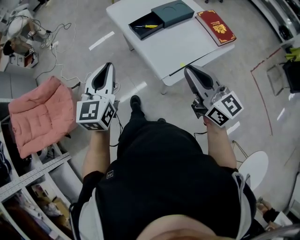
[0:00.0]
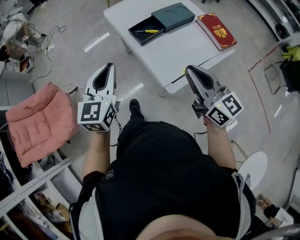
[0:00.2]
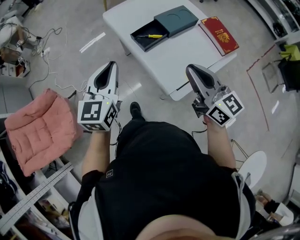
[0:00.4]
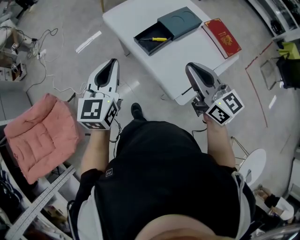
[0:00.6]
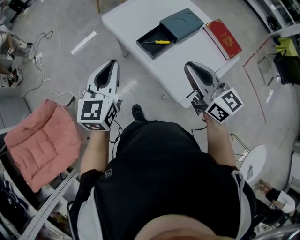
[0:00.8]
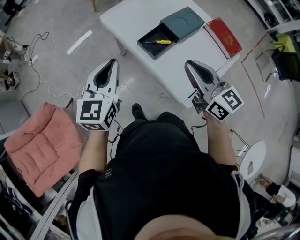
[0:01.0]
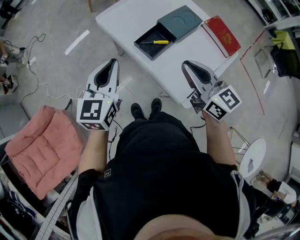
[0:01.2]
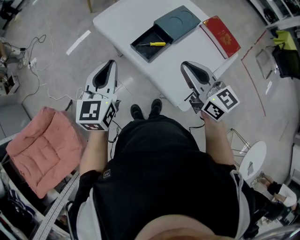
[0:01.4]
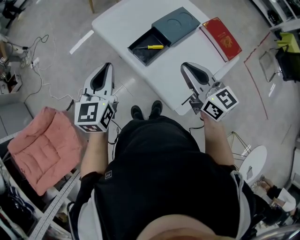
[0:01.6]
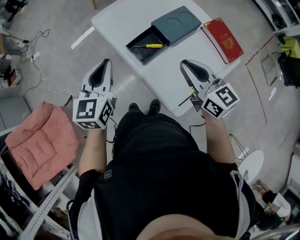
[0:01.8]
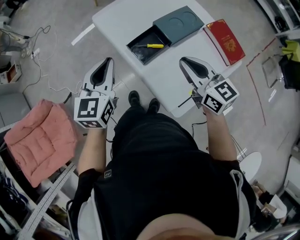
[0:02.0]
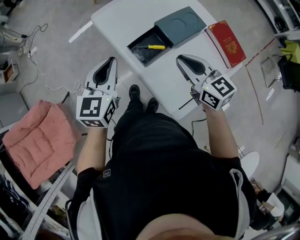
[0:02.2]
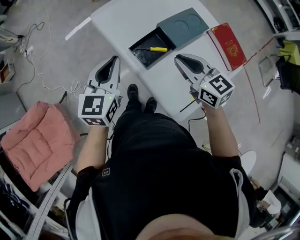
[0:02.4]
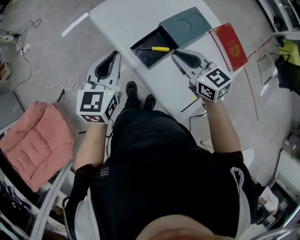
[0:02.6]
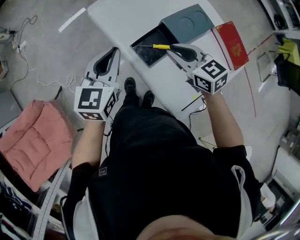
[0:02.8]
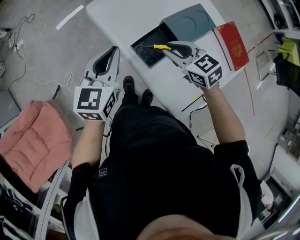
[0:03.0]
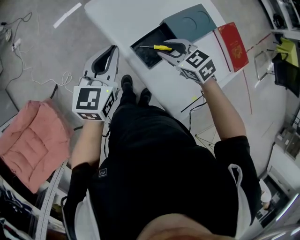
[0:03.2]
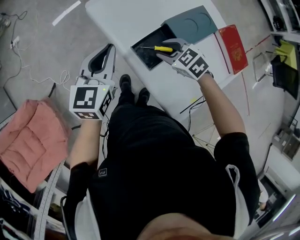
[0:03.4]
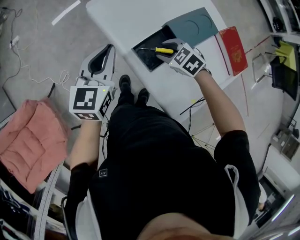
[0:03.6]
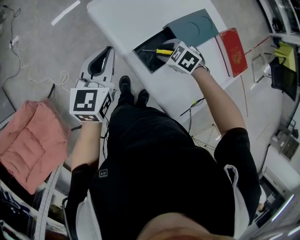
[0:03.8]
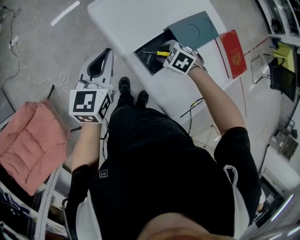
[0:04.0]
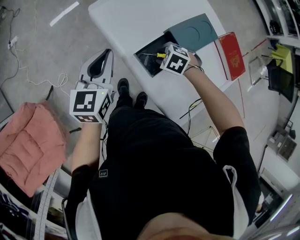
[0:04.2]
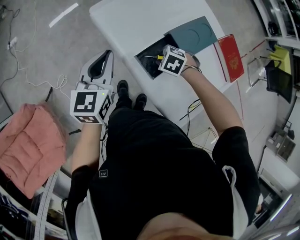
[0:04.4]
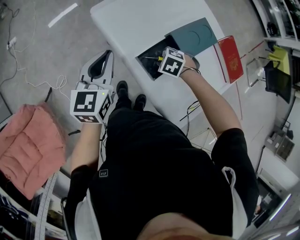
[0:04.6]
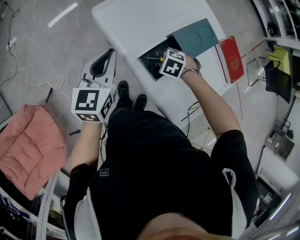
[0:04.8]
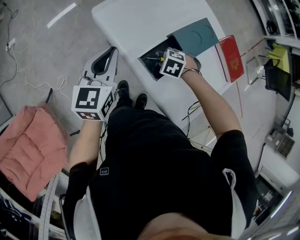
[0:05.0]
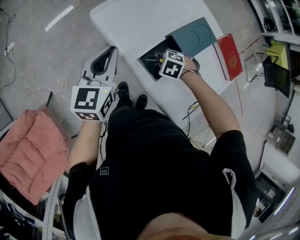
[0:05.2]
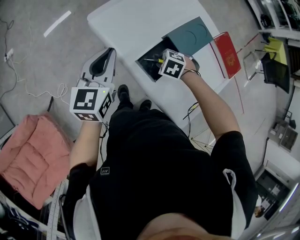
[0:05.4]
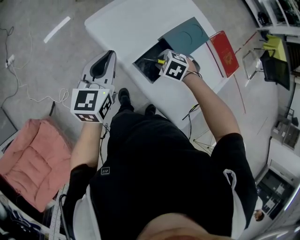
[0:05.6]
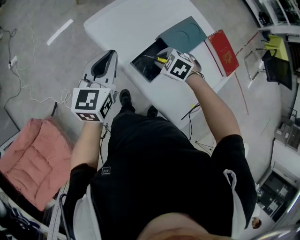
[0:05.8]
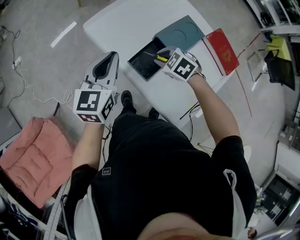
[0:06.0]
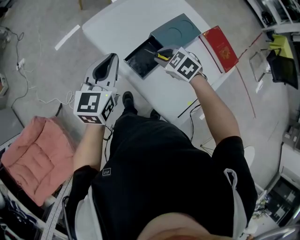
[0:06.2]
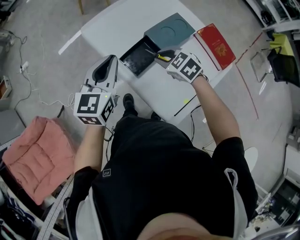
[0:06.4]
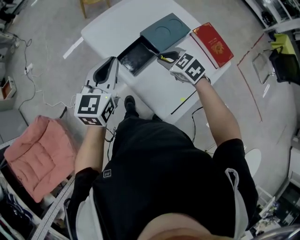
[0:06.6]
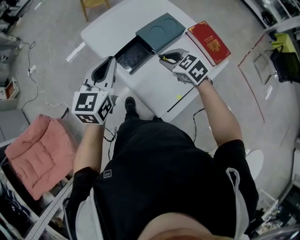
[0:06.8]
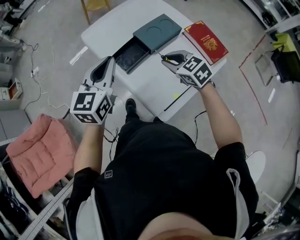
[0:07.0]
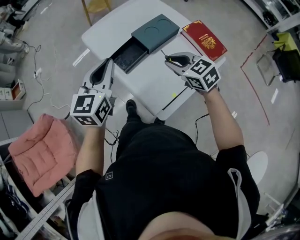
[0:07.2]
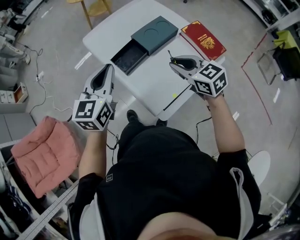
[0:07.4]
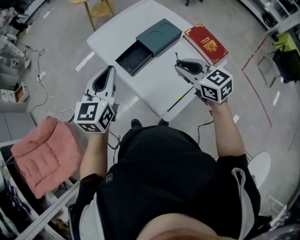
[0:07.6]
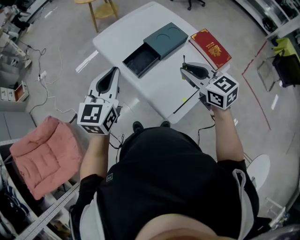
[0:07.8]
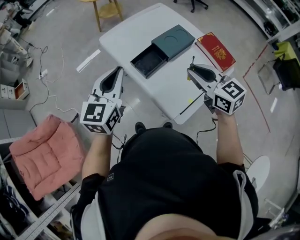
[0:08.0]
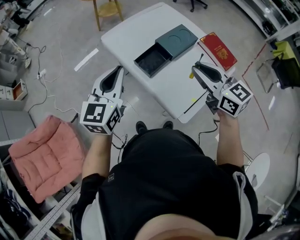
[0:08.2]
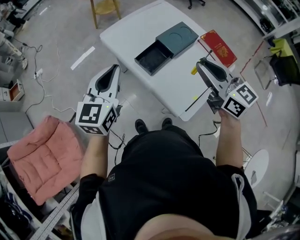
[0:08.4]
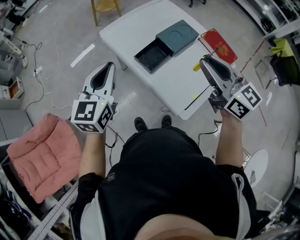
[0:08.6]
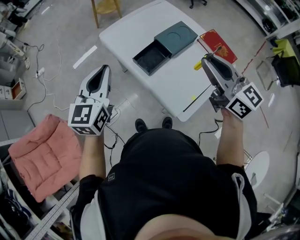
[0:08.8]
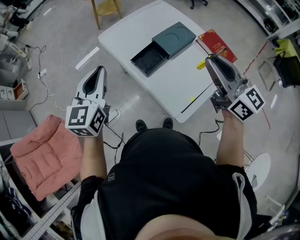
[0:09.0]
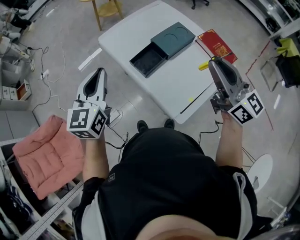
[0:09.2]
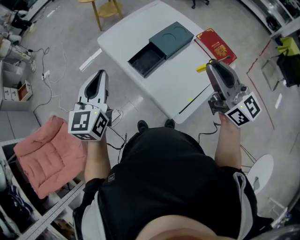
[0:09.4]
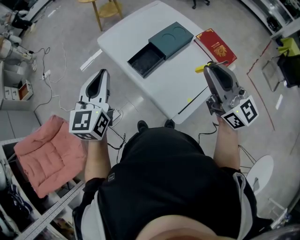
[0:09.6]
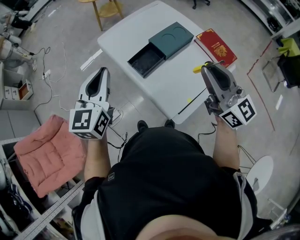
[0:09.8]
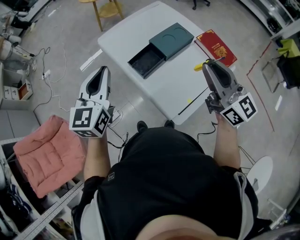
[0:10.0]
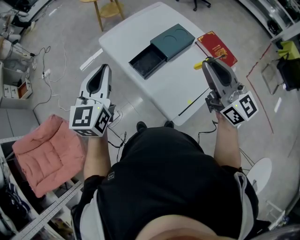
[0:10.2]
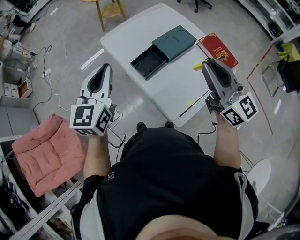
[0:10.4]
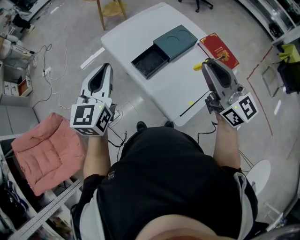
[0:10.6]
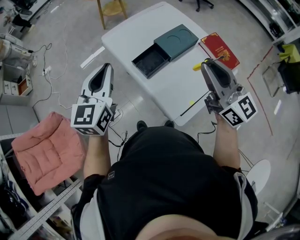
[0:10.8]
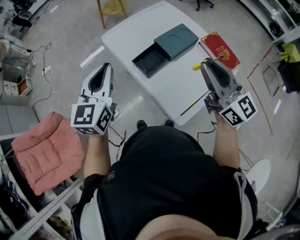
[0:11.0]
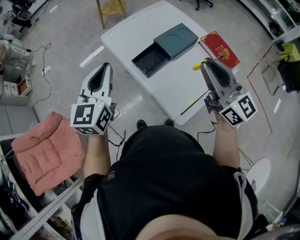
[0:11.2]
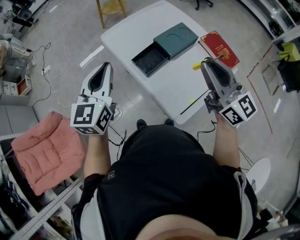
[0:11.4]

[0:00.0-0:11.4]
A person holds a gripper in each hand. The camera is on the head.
0.0 to 1.4 s: Both grippers travel together forward, some 25 cm.
1.4 to 2.8 s: The left gripper is displaced forward and downward by some 15 cm. Meanwhile the right gripper goes roughly 20 cm forward and downward, and changes its angle by some 30 degrees.
2.8 to 4.2 s: The right gripper shifts roughly 20 cm downward, tips its fingers downward by about 50 degrees, and opens up. Meanwhile the left gripper moves some 10 cm.
4.2 to 5.6 s: The right gripper closes its fingers.
5.6 to 7.2 s: The right gripper shifts by about 30 cm, and tips its fingers upward by roughly 40 degrees. The left gripper moves about 25 cm.
7.2 to 8.6 s: The right gripper heads upward and to the left, covering some 20 cm, and swivels approximately 30 degrees; the left gripper goes roughly 15 cm to the left.
8.6 to 10.0 s: The right gripper is displaced to the right by some 10 cm. The left gripper travels to the right by roughly 5 cm.
10.0 to 11.4 s: The grippers move only a little.

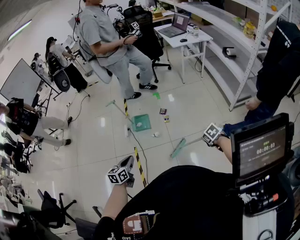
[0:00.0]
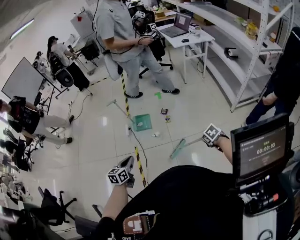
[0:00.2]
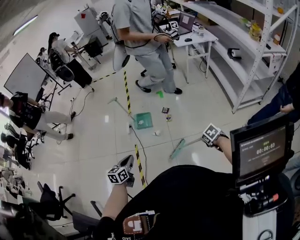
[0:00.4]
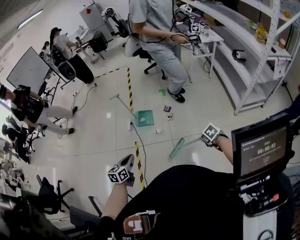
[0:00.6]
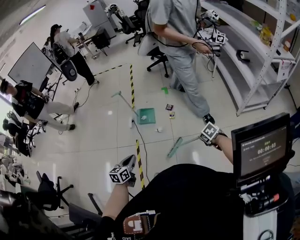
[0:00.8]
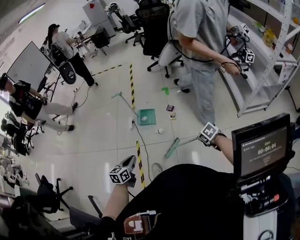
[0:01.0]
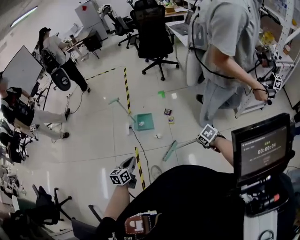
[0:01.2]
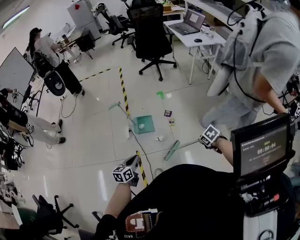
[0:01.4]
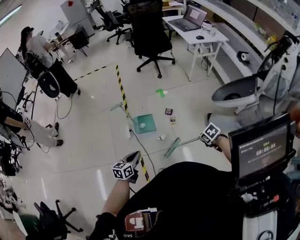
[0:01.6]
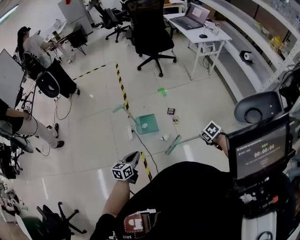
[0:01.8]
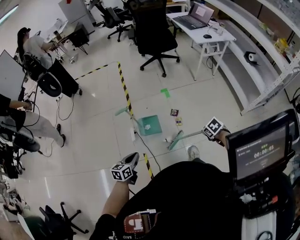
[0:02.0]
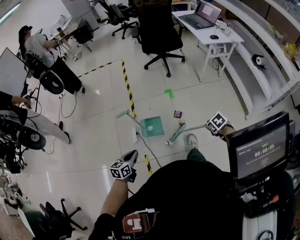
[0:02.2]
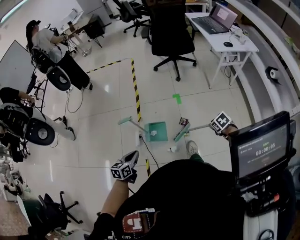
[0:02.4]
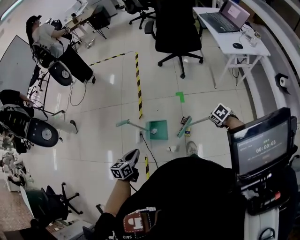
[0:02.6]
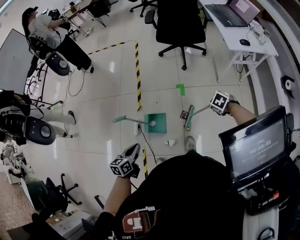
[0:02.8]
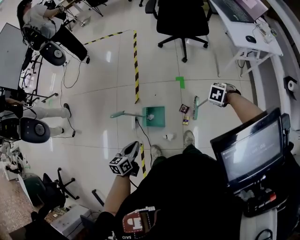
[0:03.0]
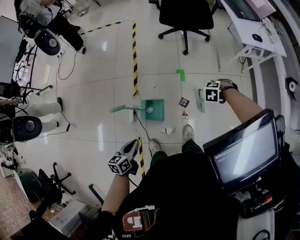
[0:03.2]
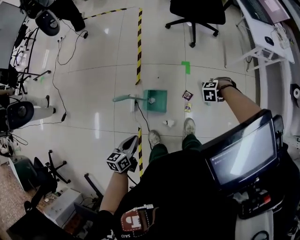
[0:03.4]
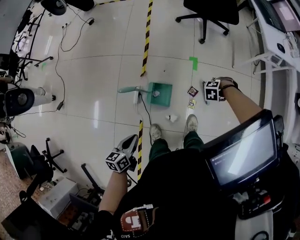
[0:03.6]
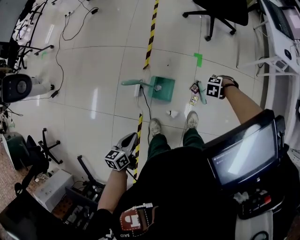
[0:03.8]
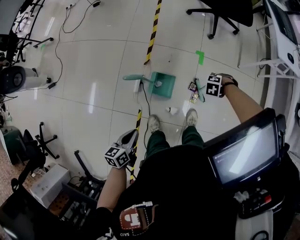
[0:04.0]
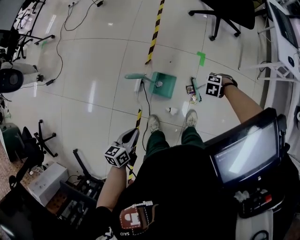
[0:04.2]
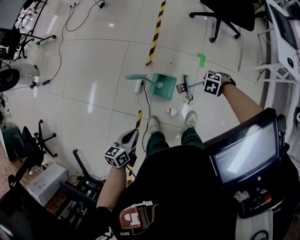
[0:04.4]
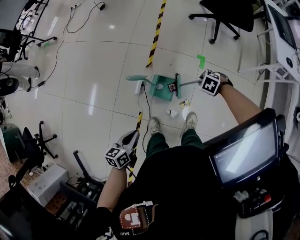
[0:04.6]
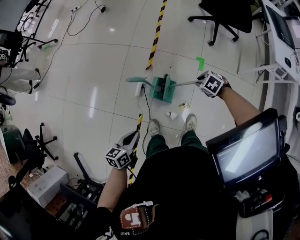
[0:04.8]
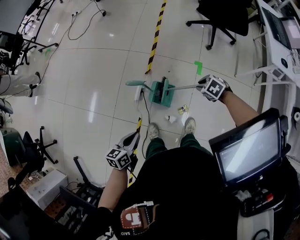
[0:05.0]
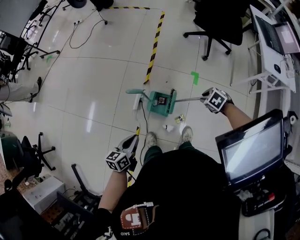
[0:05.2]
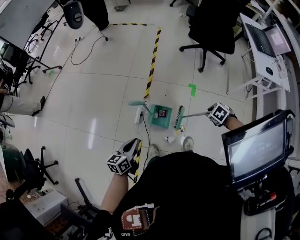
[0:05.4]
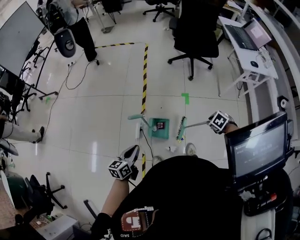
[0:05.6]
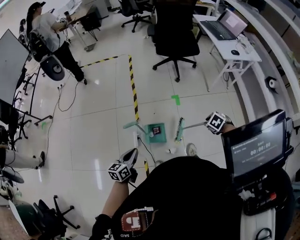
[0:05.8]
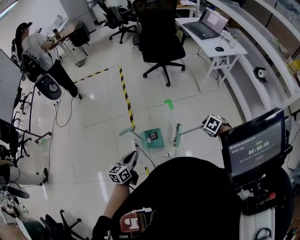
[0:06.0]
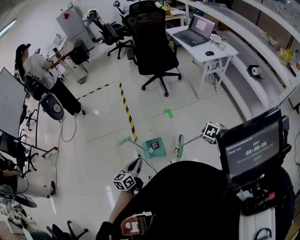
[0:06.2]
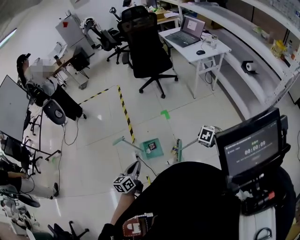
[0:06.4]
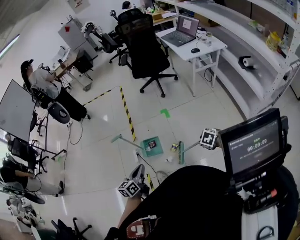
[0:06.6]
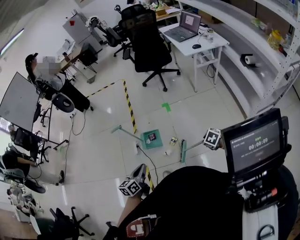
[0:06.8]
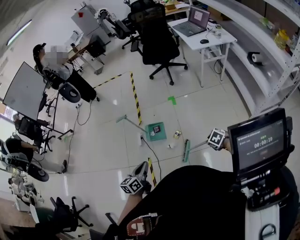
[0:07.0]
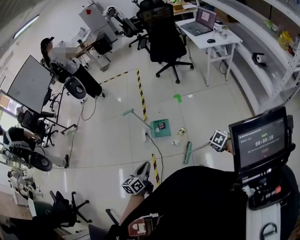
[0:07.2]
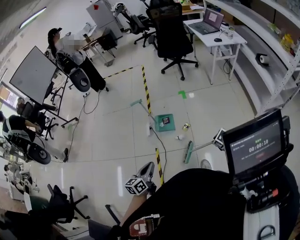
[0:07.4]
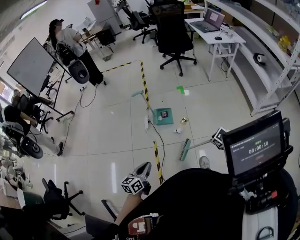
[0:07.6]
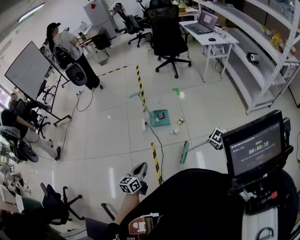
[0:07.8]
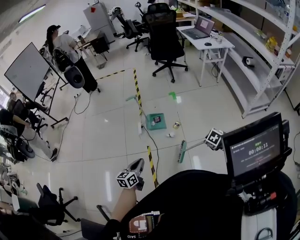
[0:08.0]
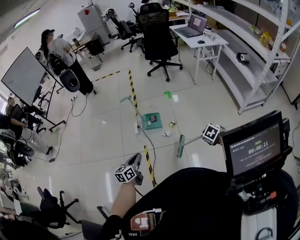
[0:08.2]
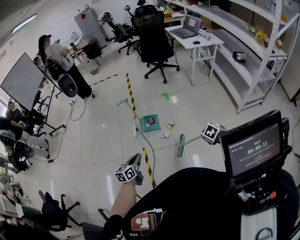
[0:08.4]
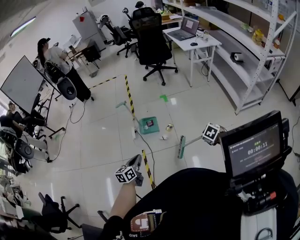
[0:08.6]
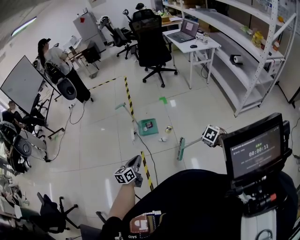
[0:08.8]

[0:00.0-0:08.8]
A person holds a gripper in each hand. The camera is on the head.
0.0 to 1.4 s: The left gripper shifts by about 15 cm.
1.4 to 3.0 s: The left gripper ends up roughly 35 cm from where it was.
3.0 to 4.4 s: The left gripper changes place by about 15 cm.
4.4 to 5.8 s: The left gripper shifts approximately 10 cm upward, and swivels about 20 degrees.
5.8 to 7.4 s: The left gripper changes place by approximately 40 cm.

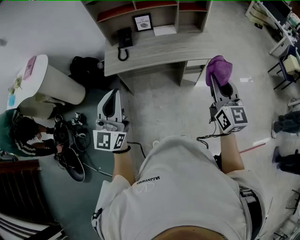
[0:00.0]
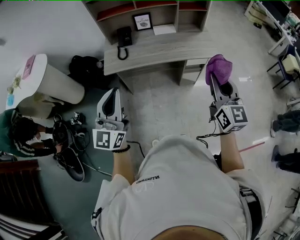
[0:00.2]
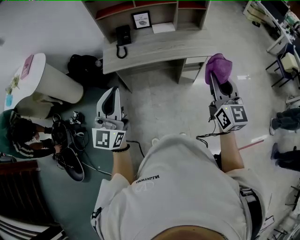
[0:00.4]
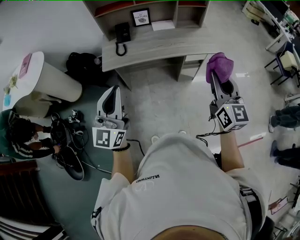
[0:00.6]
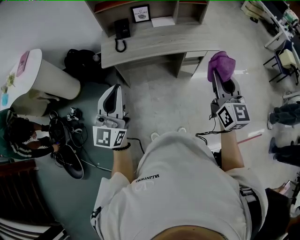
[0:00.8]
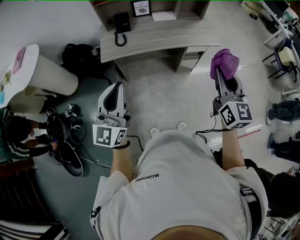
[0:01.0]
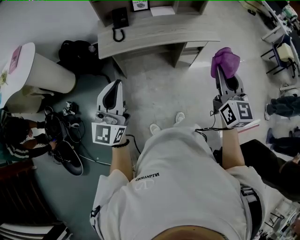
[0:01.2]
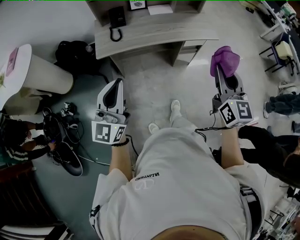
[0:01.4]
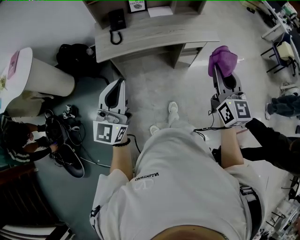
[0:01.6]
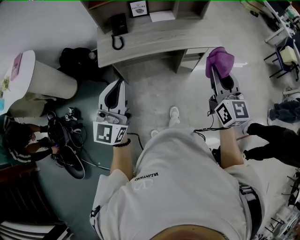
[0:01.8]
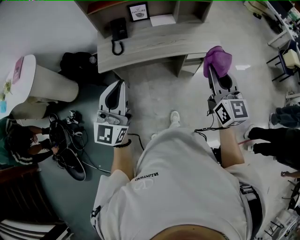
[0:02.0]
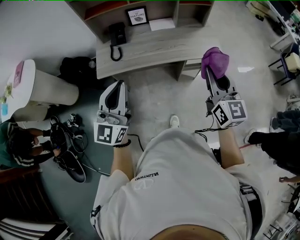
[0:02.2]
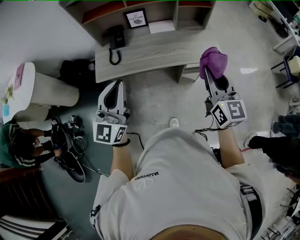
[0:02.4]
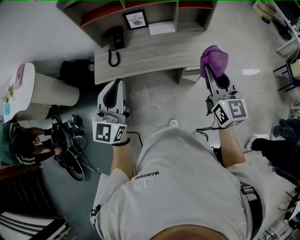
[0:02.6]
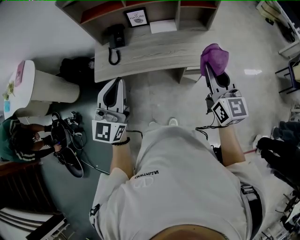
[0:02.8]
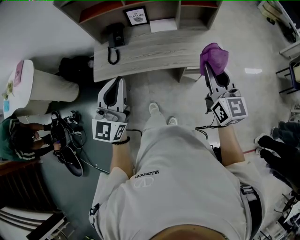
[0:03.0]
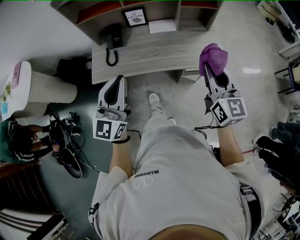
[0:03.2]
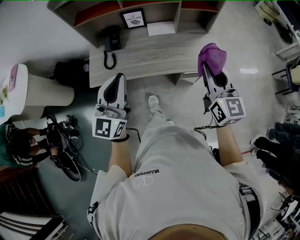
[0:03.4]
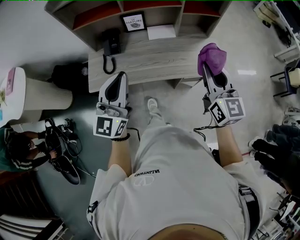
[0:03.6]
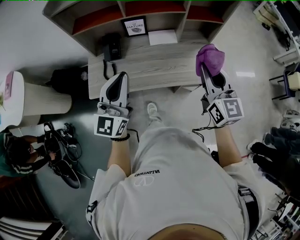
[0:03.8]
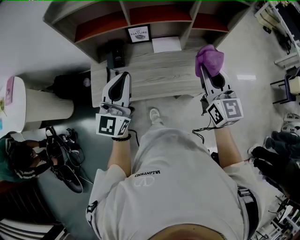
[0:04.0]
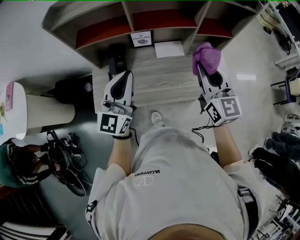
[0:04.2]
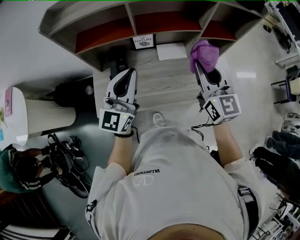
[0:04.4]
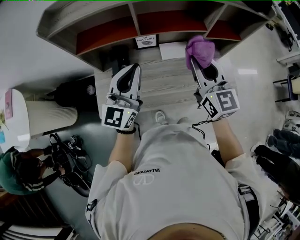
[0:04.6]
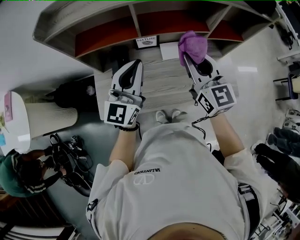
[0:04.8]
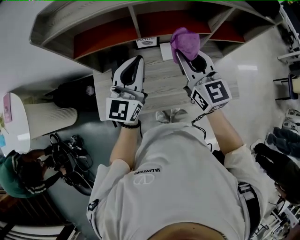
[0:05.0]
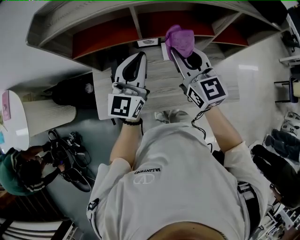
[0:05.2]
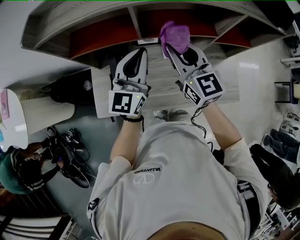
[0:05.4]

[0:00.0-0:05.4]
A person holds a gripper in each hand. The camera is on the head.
0.0 to 1.4 s: The right gripper heads to the left, covering roughly 5 cm, while the left gripper goes some 10 cm to the left and downward.
1.4 to 2.8 s: The right gripper travels forward by roughly 25 cm. Meanwhile the left gripper is displaced forward and to the right by some 25 cm.
2.8 to 4.0 s: The left gripper is displaced forward by some 20 cm. Meanwhile the right gripper goes some 20 cm forward and to the left.
4.0 to 5.4 s: The left gripper travels forward by some 25 cm. Meanwhile the right gripper goes approximately 30 cm forward and to the left.
